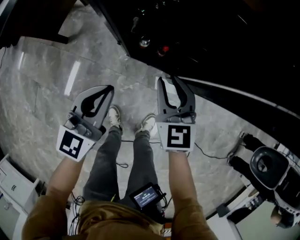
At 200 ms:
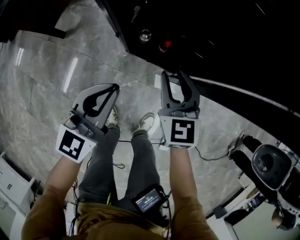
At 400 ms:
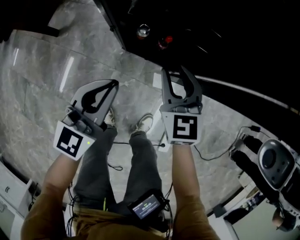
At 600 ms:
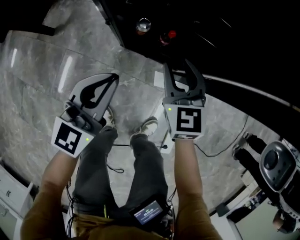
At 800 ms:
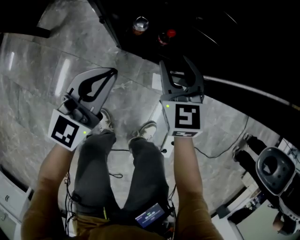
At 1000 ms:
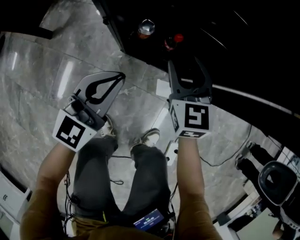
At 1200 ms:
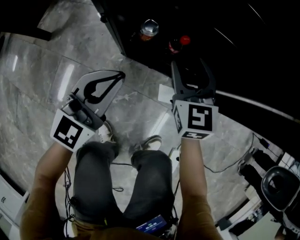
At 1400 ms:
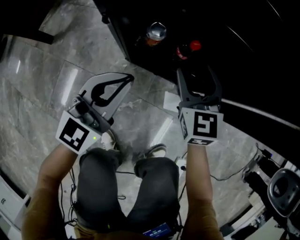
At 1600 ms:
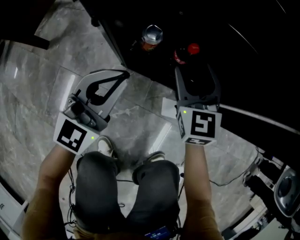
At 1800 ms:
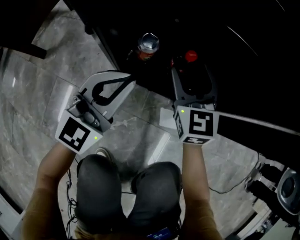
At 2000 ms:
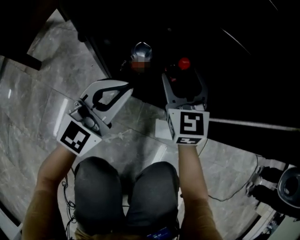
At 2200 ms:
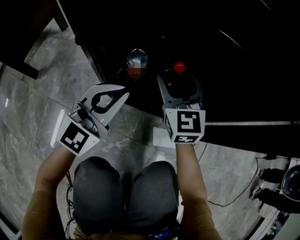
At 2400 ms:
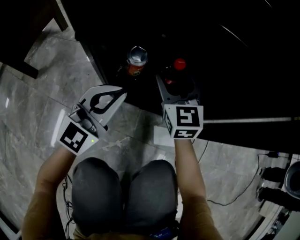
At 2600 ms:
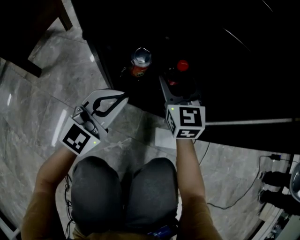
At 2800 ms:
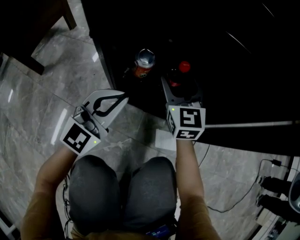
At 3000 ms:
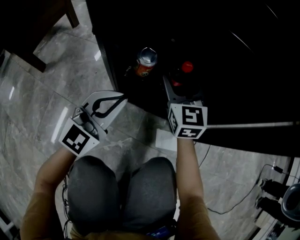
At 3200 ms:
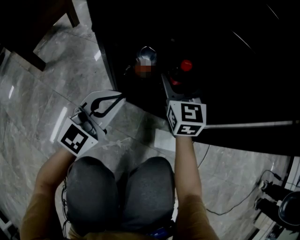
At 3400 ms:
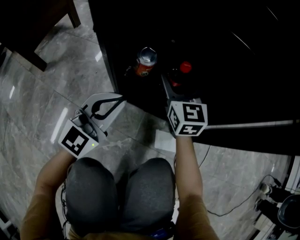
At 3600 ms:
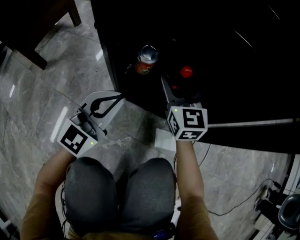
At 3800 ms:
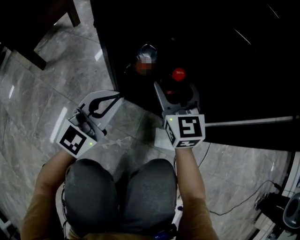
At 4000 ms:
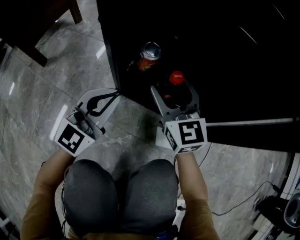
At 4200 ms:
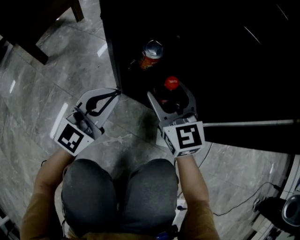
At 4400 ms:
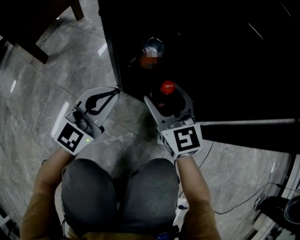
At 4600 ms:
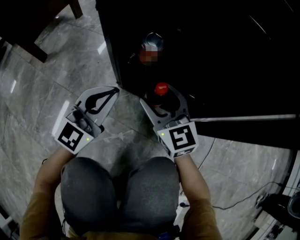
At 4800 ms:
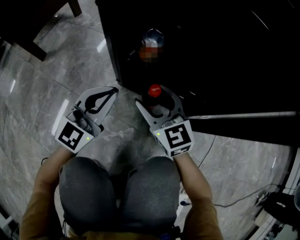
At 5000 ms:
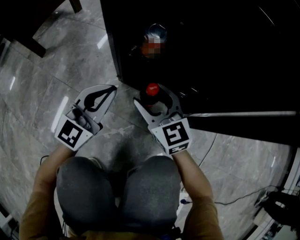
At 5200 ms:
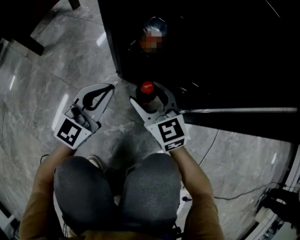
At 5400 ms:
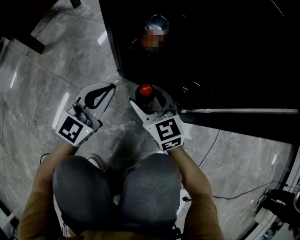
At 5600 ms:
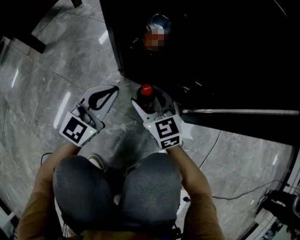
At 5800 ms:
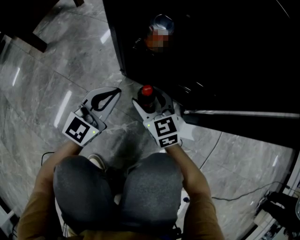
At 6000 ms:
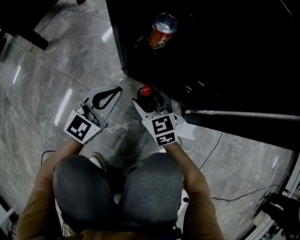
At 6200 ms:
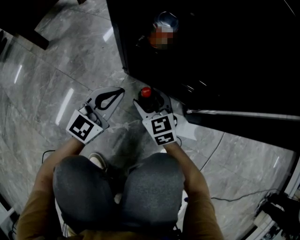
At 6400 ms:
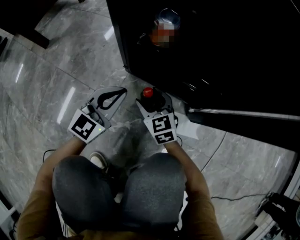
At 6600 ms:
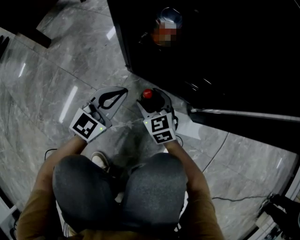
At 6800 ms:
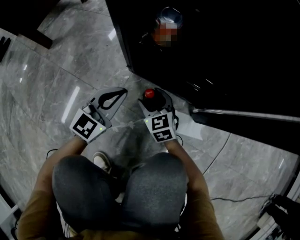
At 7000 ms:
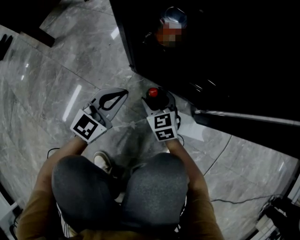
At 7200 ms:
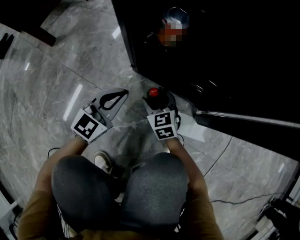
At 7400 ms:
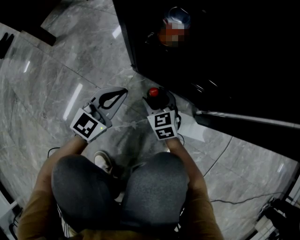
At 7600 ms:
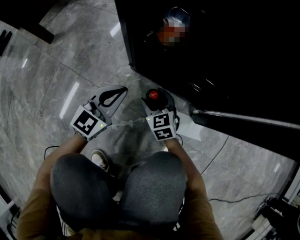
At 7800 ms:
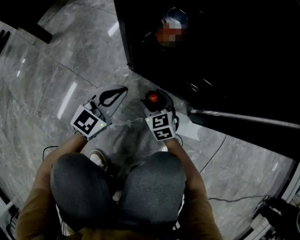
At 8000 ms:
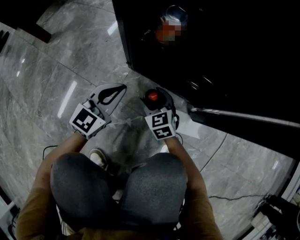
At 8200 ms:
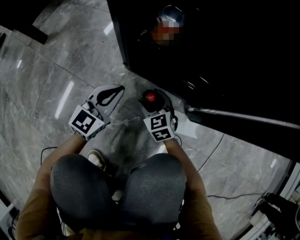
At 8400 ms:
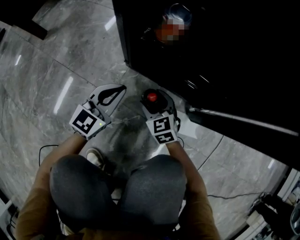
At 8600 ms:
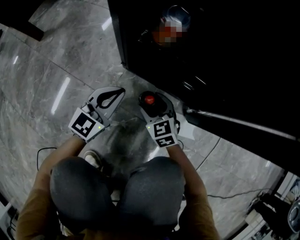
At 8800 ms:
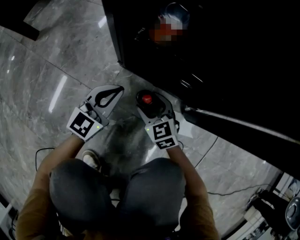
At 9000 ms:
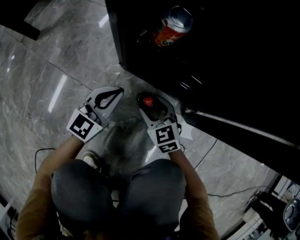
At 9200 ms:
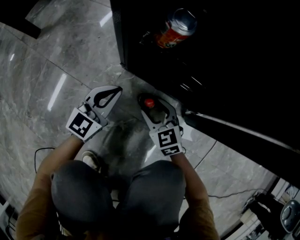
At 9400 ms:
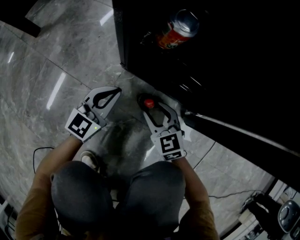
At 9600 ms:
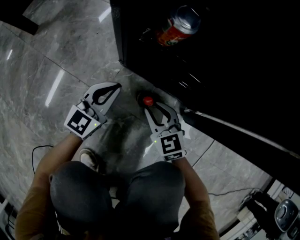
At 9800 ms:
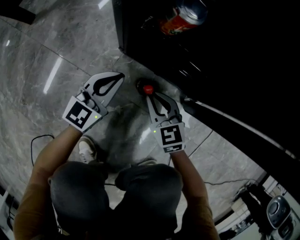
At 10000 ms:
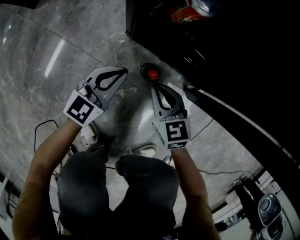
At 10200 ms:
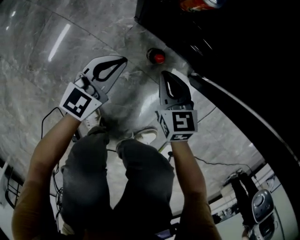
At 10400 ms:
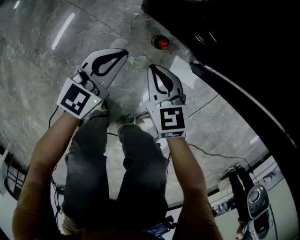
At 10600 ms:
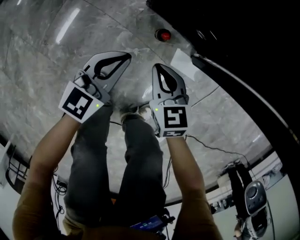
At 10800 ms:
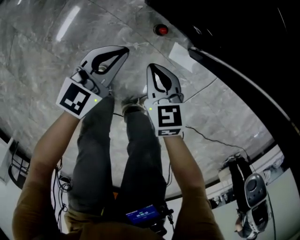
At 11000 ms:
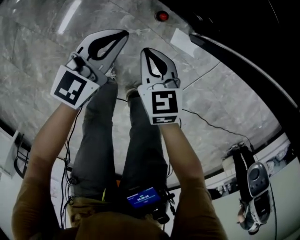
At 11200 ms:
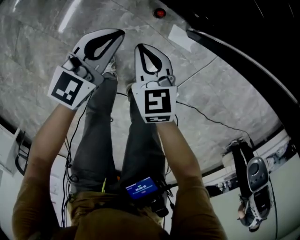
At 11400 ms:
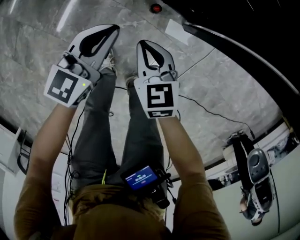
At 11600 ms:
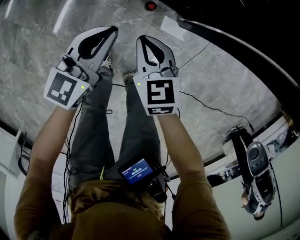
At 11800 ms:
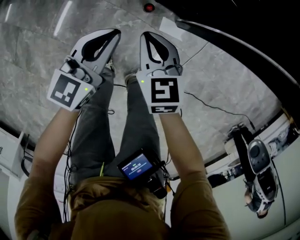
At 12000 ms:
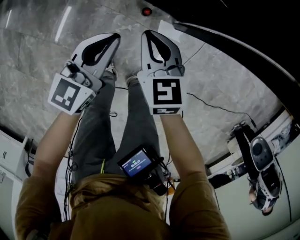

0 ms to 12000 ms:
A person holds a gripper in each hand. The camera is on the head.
0 ms to 1600 ms: The two grippers go approximately 30 cm downward. The left gripper changes its angle by some 20 degrees, while the right gripper opens up.
1600 ms to 3000 ms: The right gripper travels forward by some 5 cm; the left gripper moves downward, some 10 cm.
3000 ms to 4400 ms: The right gripper goes approximately 10 cm backward.
4400 ms to 6000 ms: The right gripper goes some 20 cm downward. The left gripper goes some 10 cm downward.
6000 ms to 7600 ms: The right gripper travels downward by about 10 cm.
7600 ms to 9000 ms: The grippers stay close to where they were, moving slightly.
9000 ms to 10400 ms: The grippers both shift upward and backward by approximately 15 cm. The right gripper closes its fingers.
10400 ms to 12000 ms: Both grippers move upward, approximately 35 cm.

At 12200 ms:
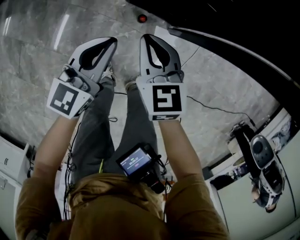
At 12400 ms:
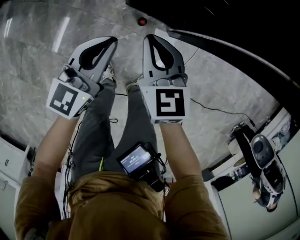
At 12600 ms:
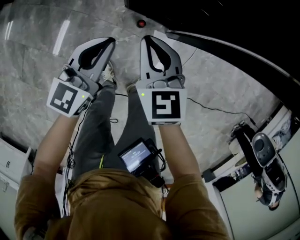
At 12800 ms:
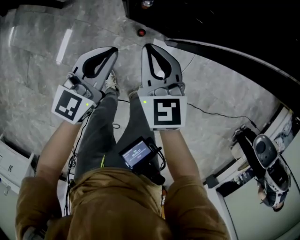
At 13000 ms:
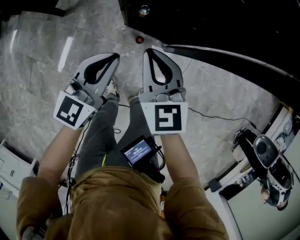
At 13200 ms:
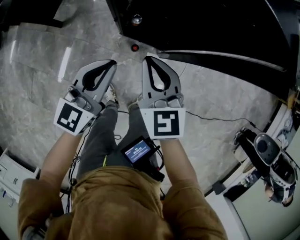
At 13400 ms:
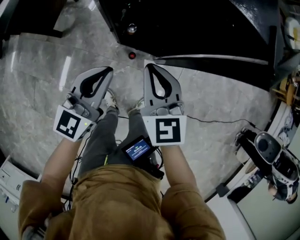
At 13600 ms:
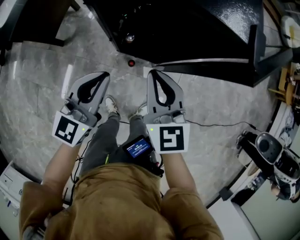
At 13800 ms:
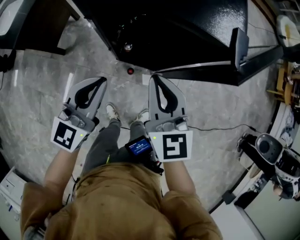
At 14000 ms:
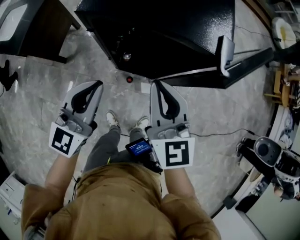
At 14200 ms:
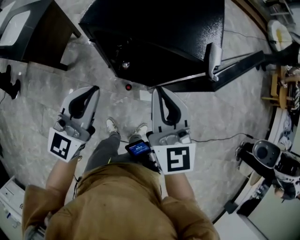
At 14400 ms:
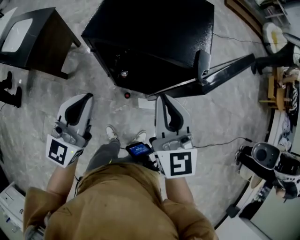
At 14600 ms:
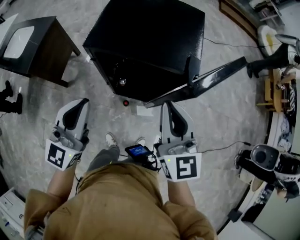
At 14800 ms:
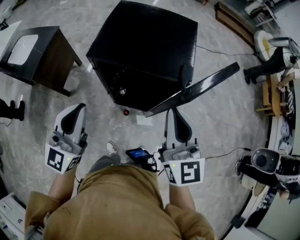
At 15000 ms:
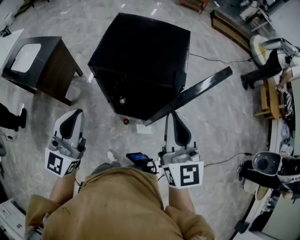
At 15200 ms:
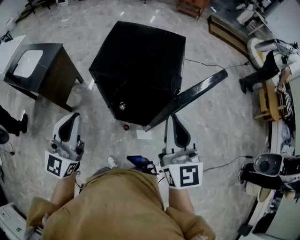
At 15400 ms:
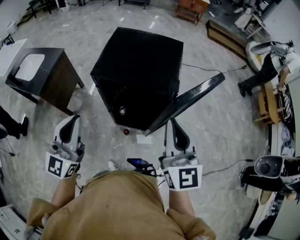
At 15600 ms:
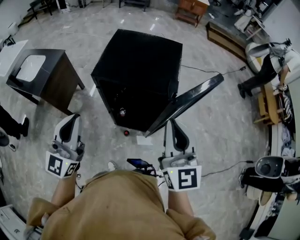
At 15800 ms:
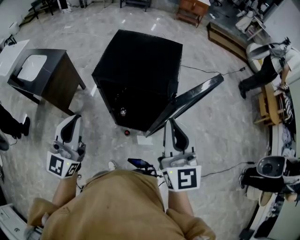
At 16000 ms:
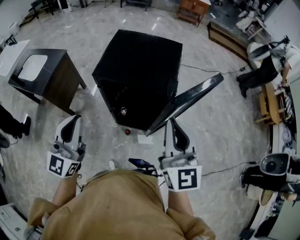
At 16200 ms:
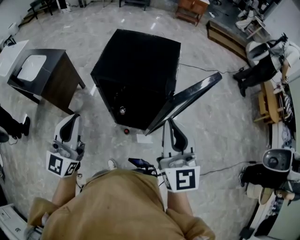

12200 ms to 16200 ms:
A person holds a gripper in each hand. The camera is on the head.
12200 ms to 13600 ms: The two grippers go roughly 25 cm upward. The right gripper swivels roughly 20 degrees.
13600 ms to 14800 ms: The right gripper moves upward and to the right, about 25 cm. The left gripper travels upward by roughly 20 cm.
14800 ms to 16200 ms: Both grippers move upward and backward, roughly 10 cm.

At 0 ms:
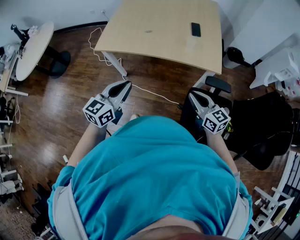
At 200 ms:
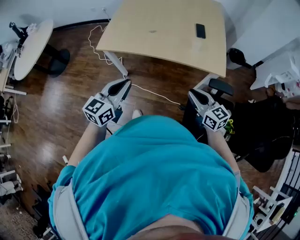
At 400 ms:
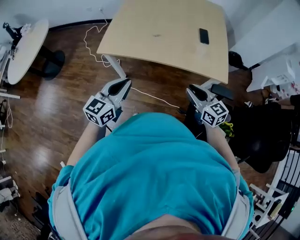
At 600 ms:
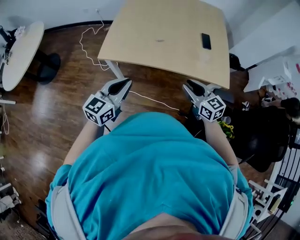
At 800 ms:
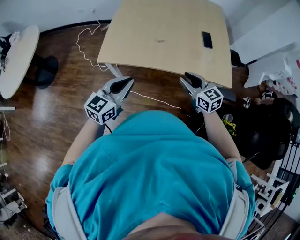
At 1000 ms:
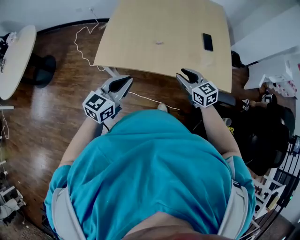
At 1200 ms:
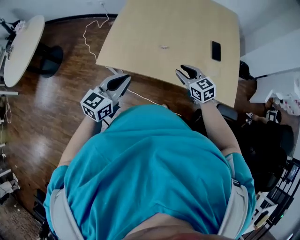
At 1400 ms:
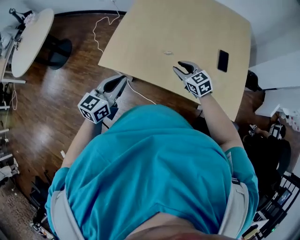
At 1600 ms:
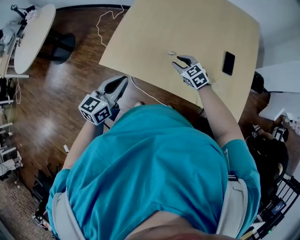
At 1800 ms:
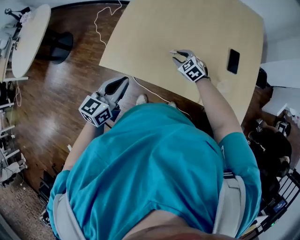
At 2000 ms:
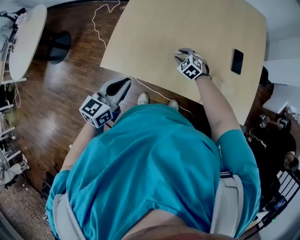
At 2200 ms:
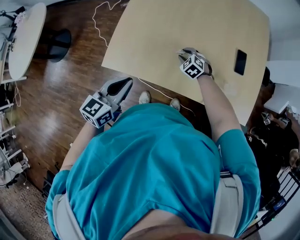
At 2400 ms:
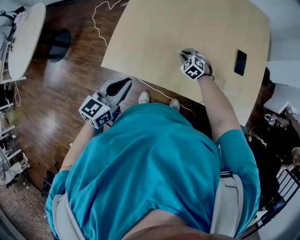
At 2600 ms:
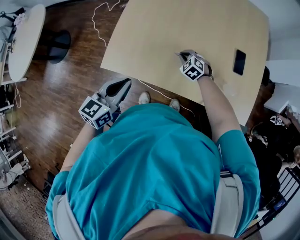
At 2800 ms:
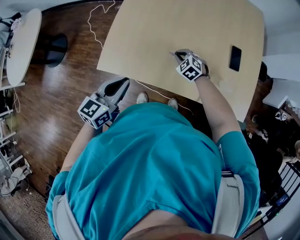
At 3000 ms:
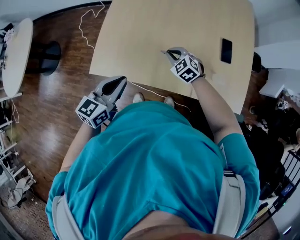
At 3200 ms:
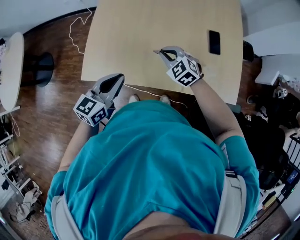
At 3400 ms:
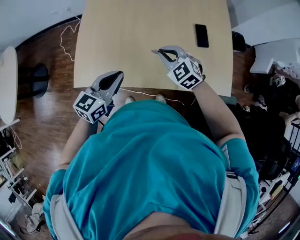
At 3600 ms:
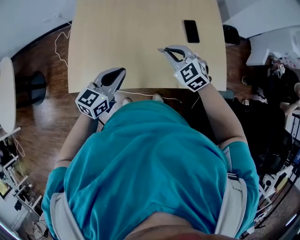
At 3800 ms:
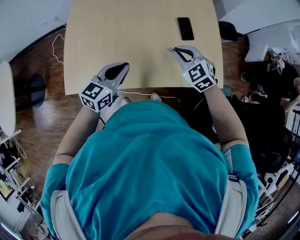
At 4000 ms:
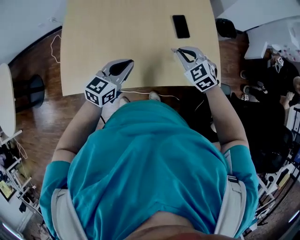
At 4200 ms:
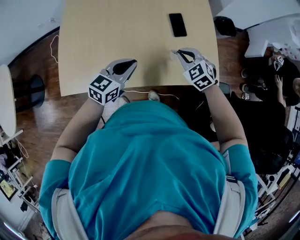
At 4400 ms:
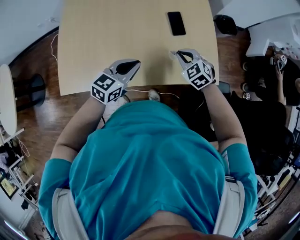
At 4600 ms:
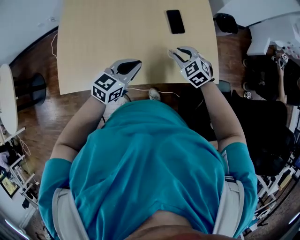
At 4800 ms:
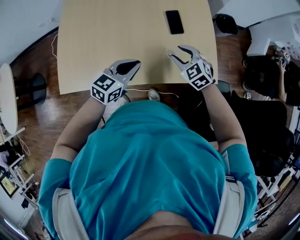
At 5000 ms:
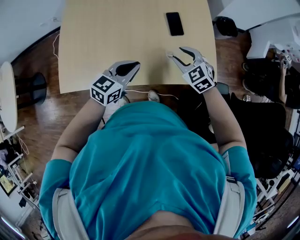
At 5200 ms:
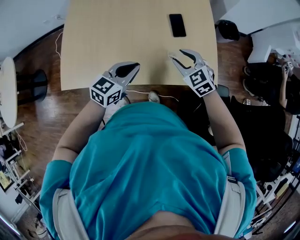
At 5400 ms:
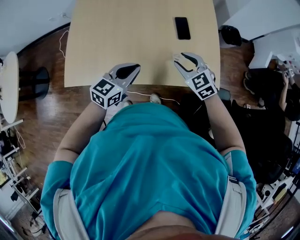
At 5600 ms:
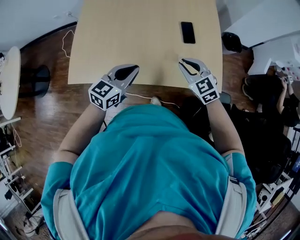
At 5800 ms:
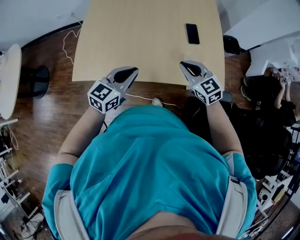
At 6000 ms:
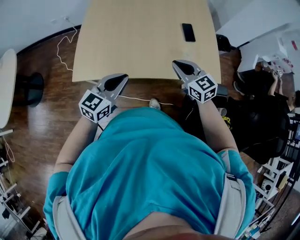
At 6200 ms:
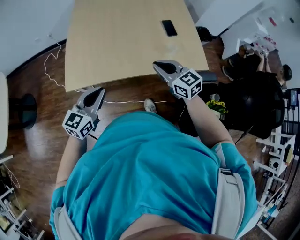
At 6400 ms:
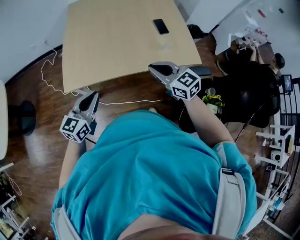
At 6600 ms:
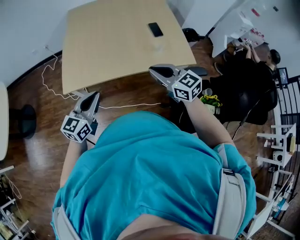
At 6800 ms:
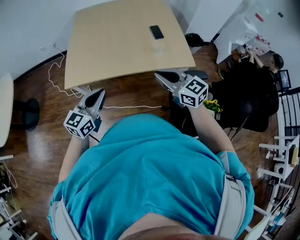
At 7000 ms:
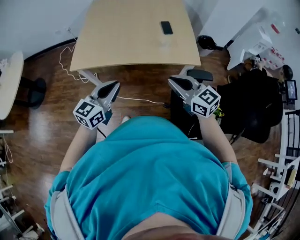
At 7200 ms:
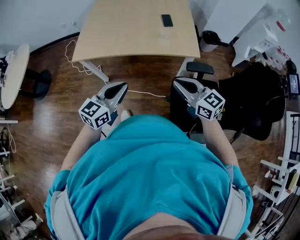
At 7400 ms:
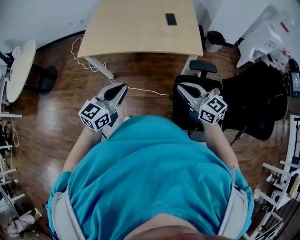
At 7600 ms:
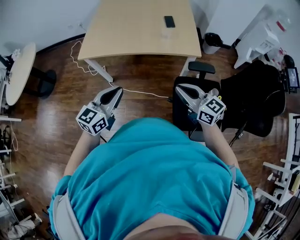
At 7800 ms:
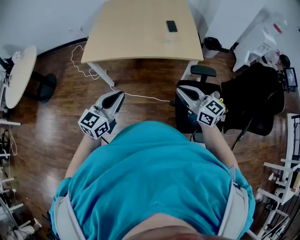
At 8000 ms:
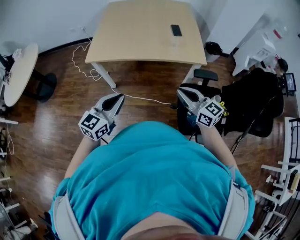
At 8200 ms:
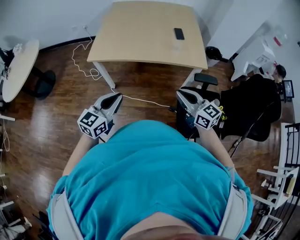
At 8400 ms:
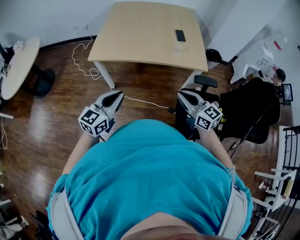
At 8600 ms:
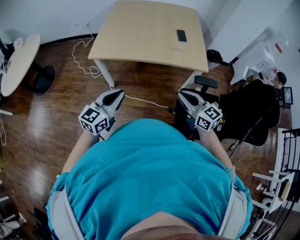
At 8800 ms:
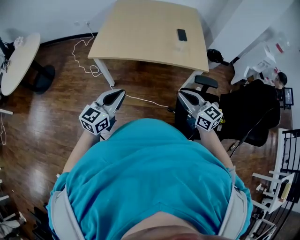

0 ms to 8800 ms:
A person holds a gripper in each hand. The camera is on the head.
0 ms to 1400 ms: The grippers both shift forward and to the left by approximately 40 cm. The right gripper changes its angle by roughly 30 degrees, and opens.
1400 ms to 3000 ms: The right gripper is displaced forward and downward by some 10 cm, rotates roughly 20 degrees, and closes. The left gripper goes about 5 cm forward.
3000 ms to 4400 ms: Both grippers move to the right, roughly 30 cm. The left gripper swivels some 30 degrees. The right gripper turns by roughly 20 degrees.
4400 ms to 5800 ms: The left gripper is displaced backward, to the left and upward by approximately 15 cm; the right gripper travels upward, backward and to the left by some 15 cm, rotates roughly 30 degrees, and opens, then closes again.
5800 ms to 7400 ms: The grippers both shift backward by some 35 cm. The right gripper changes its angle by some 30 degrees.
7400 ms to 8800 ms: Both grippers travel together to the left, approximately 10 cm.
